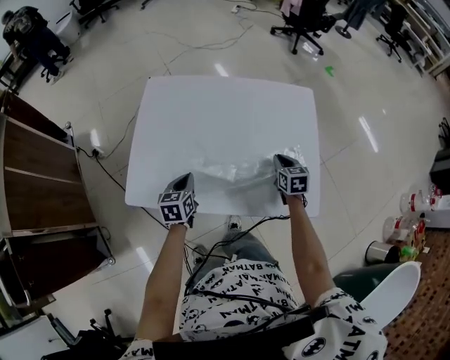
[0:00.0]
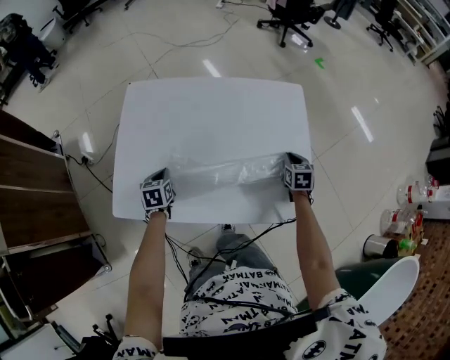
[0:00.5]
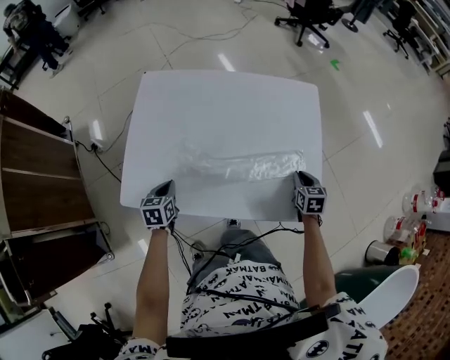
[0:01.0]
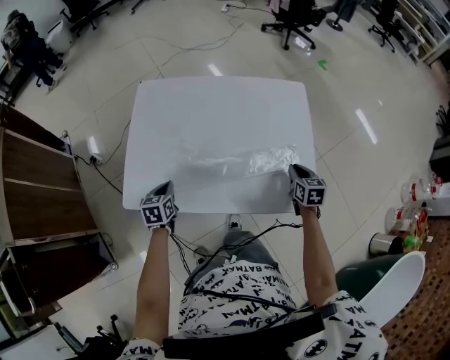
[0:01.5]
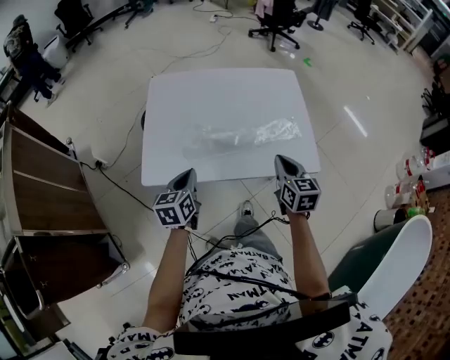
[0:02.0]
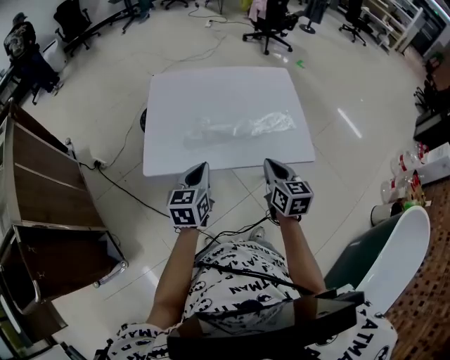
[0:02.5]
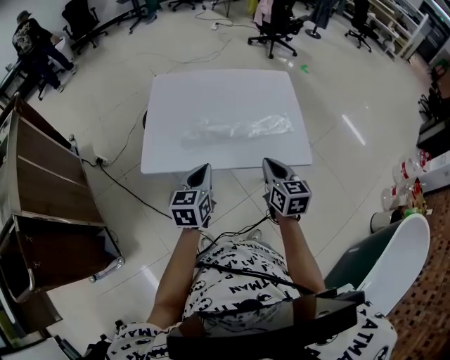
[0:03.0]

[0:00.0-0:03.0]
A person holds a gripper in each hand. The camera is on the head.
0:00.0 to 0:01.5: The left gripper shifts roughly 5 cm to the left, and moves roughly 5 cm forward and comes back. Meanwhile the right gripper shifts some 10 cm to the right and backward.
0:01.5 to 0:03.0: The right gripper moves backward, upward and to the left, roughly 35 cm, and swivels approximately 20 degrees, while the left gripper is displaced upward, backward and to the right by about 30 cm, and changes its angle by roughly 30 degrees.

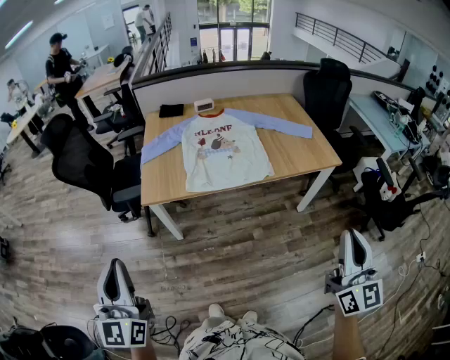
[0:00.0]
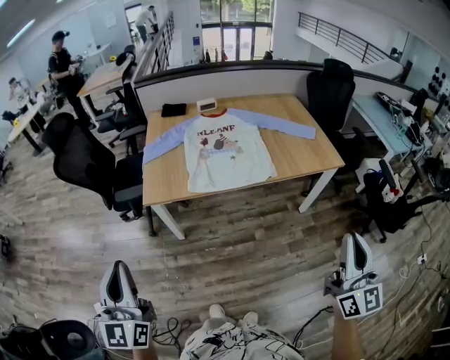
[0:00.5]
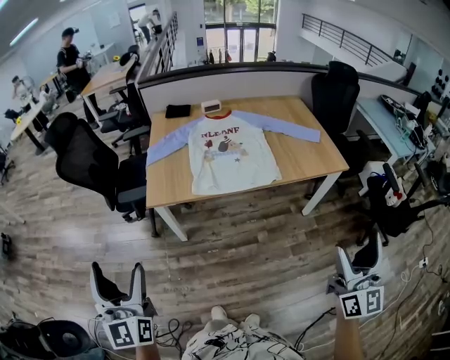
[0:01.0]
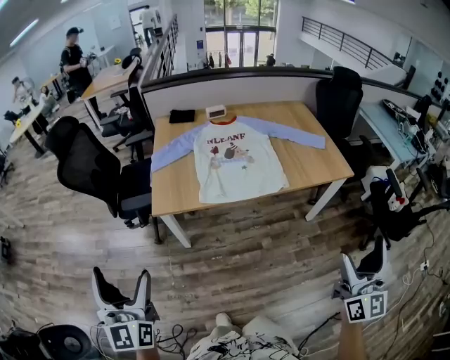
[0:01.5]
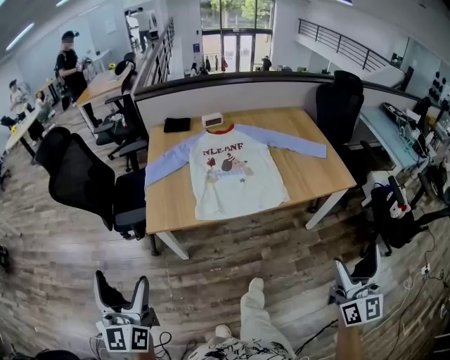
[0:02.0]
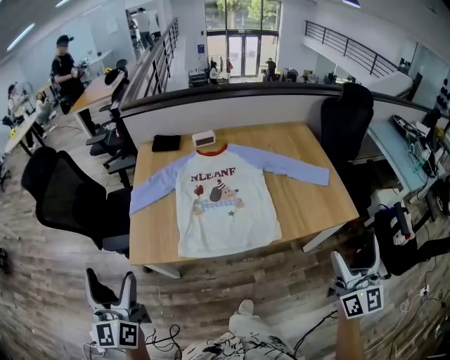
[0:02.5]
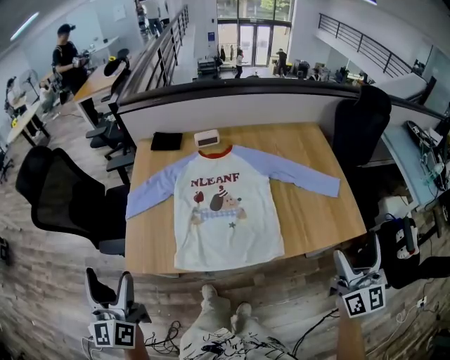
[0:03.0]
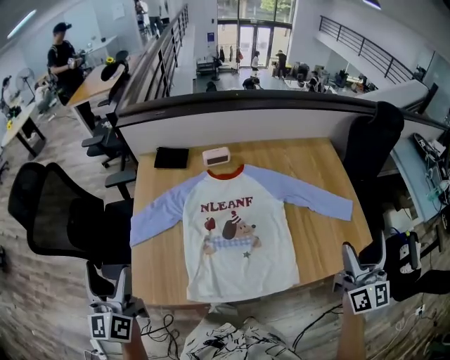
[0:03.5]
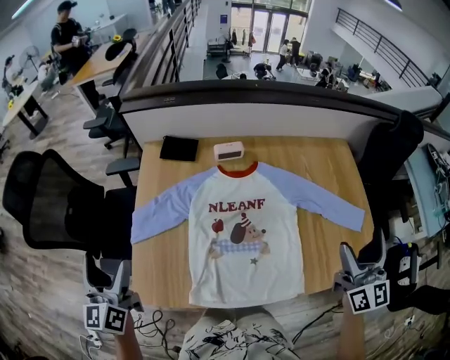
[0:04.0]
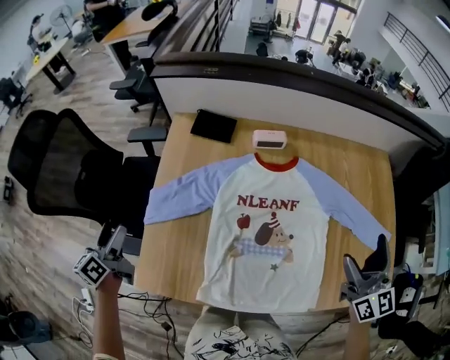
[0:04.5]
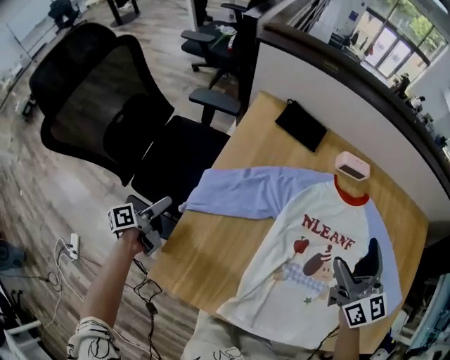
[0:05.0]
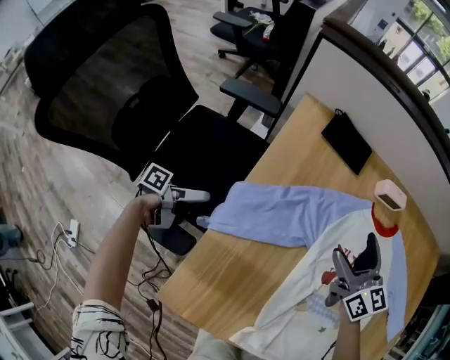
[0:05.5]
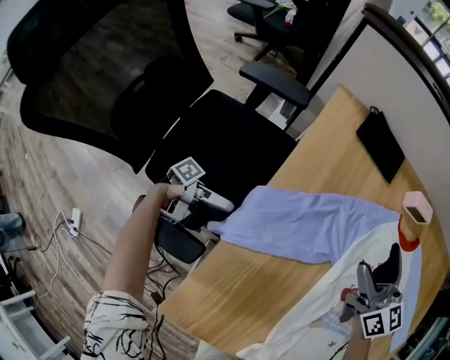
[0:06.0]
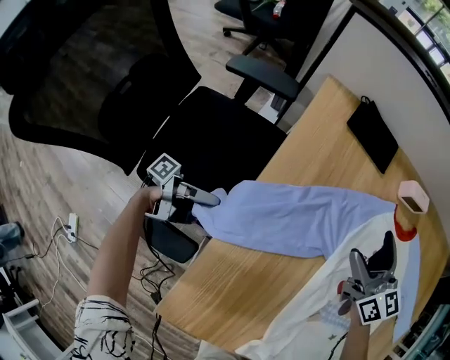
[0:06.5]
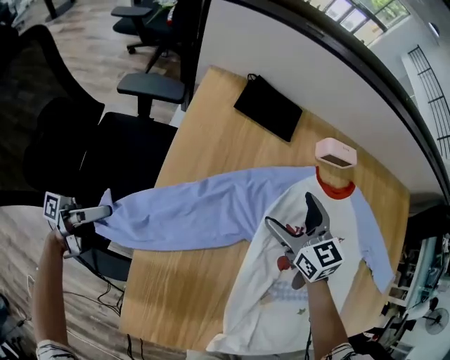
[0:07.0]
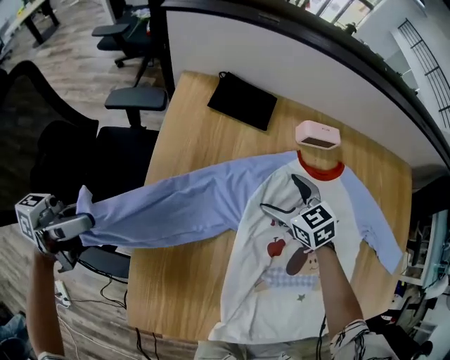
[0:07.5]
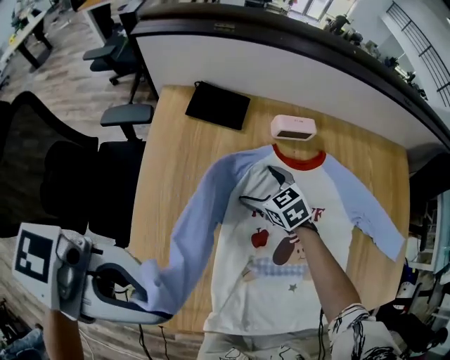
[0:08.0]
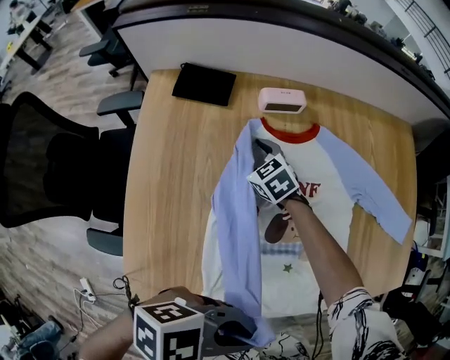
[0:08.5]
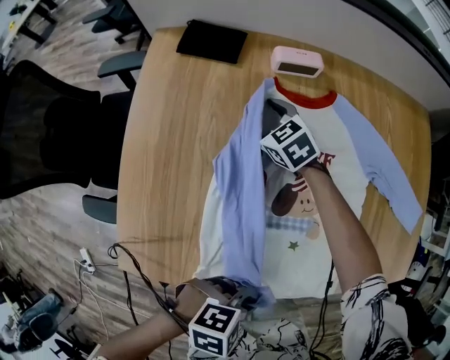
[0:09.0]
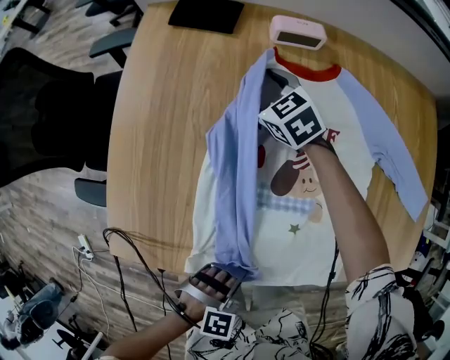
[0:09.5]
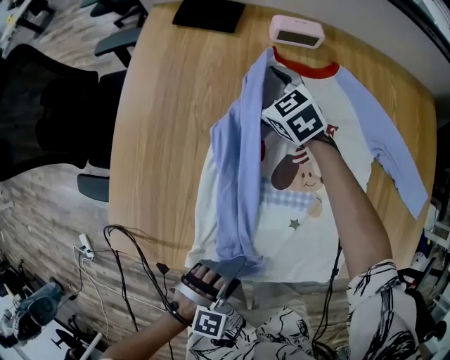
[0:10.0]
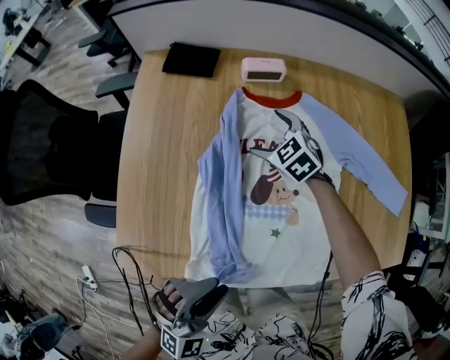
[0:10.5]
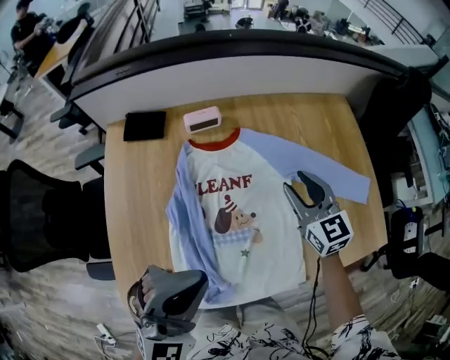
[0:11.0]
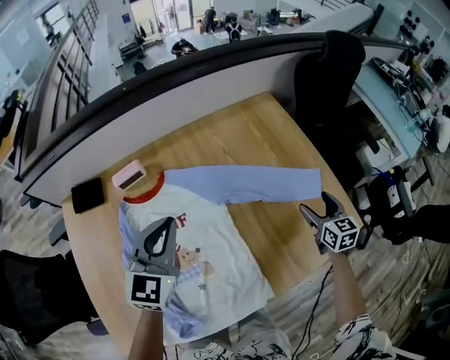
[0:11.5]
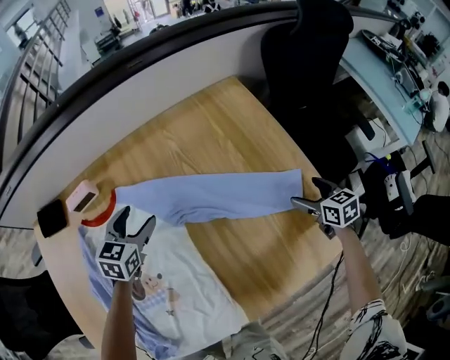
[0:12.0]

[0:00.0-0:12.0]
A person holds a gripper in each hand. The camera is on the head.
0:00.0 to 0:02.0: The right gripper travels forward by some 10 cm, and opens its fingers; the left gripper is displaced forward and to the left by approximately 15 cm, and opens.
0:02.0 to 0:04.0: The two grippers travel together, forward, about 50 cm.
0:04.0 to 0:06.0: The right gripper heads to the left, downward and forward, covering roughly 60 cm, and turns by roughly 50 degrees, while the left gripper goes some 50 cm downward, and rotates about 120 degrees.
0:06.0 to 0:08.0: The left gripper is displaced upward by about 50 cm, rolls clockwise, seen from behind, by some 80 degrees, and closes its fingers, while the right gripper shifts some 10 cm downward, and tilts its fingers approximately 30 degrees downward.
0:08.0 to 0:10.0: The left gripper moves downward, some 35 cm, angles its fingers downward, by some 60 degrees, and opens.
0:10.0 to 0:12.0: The left gripper reaches about 35 cm upward, then returns, turns by some 40 degrees, and closes and opens again. The right gripper reaches roughly 25 cm upward, then returns, twists some 50 degrees clockwise, seen from behind, and closes, then reopens.

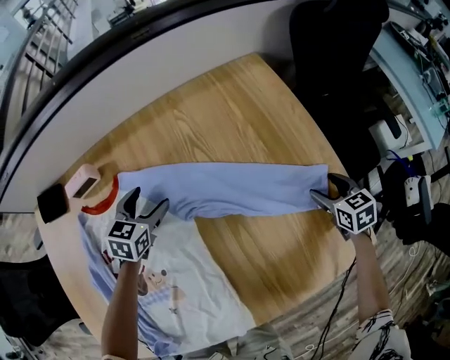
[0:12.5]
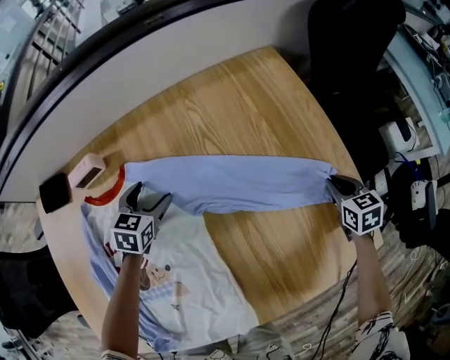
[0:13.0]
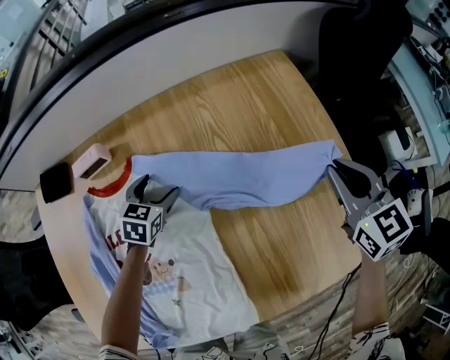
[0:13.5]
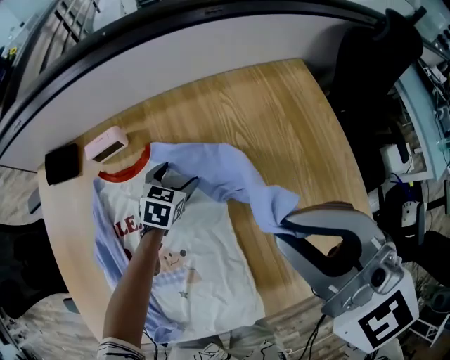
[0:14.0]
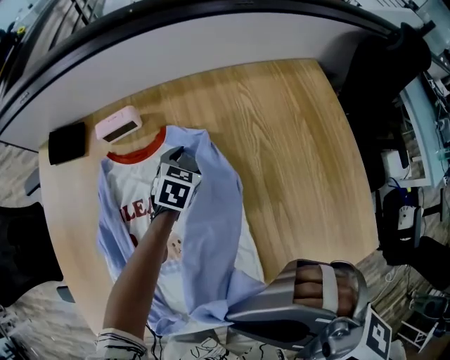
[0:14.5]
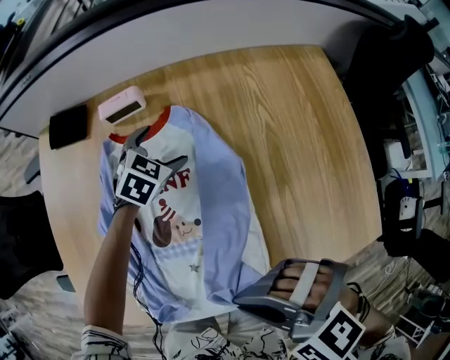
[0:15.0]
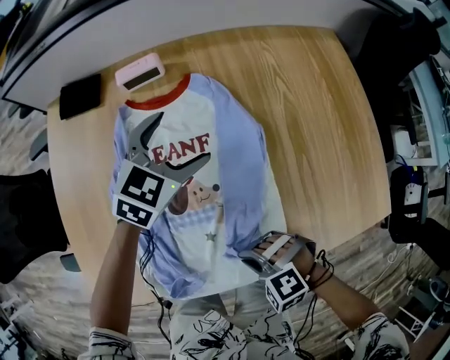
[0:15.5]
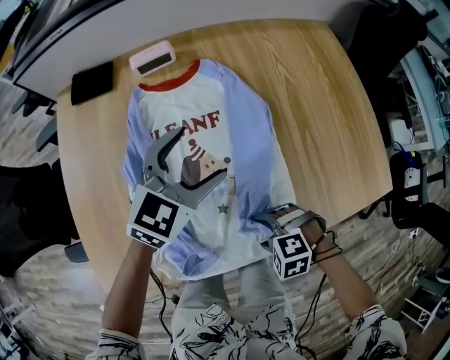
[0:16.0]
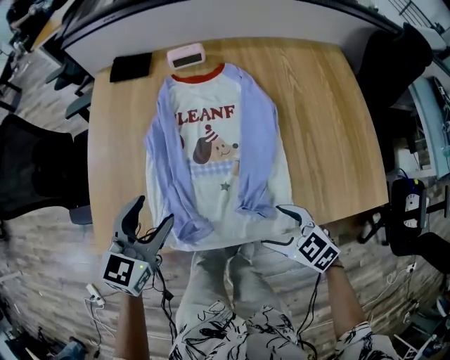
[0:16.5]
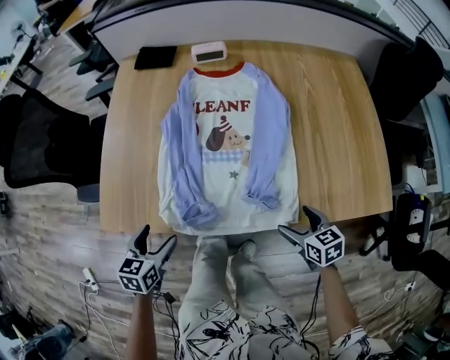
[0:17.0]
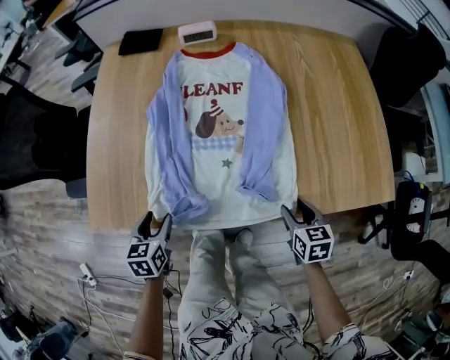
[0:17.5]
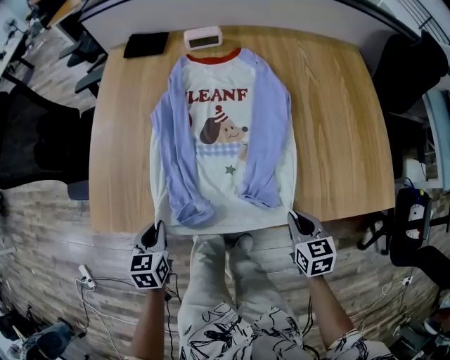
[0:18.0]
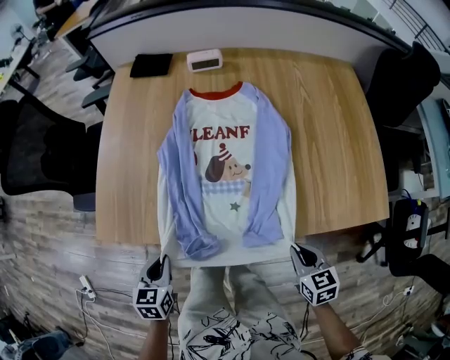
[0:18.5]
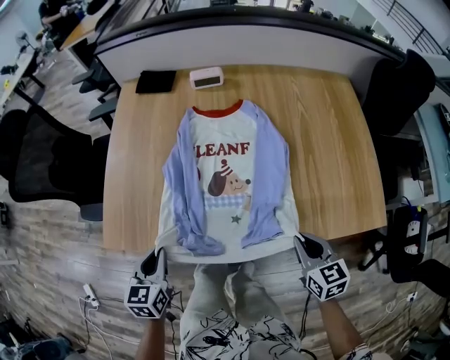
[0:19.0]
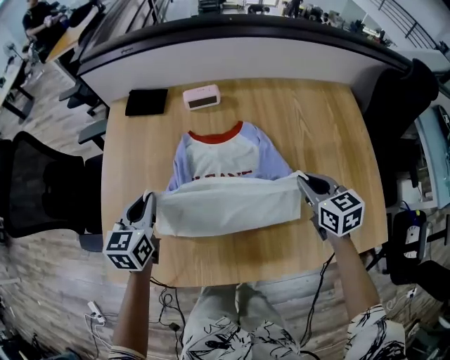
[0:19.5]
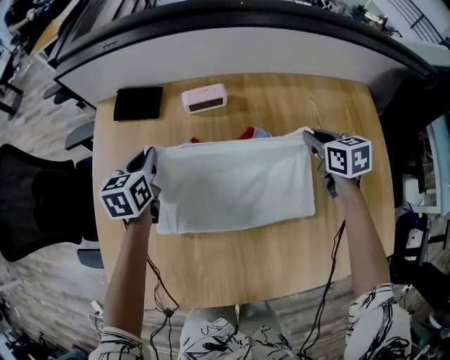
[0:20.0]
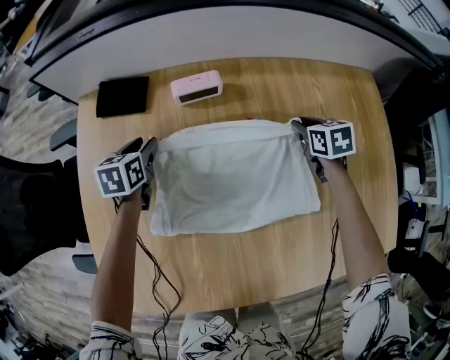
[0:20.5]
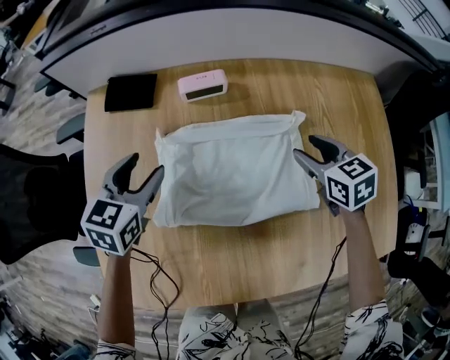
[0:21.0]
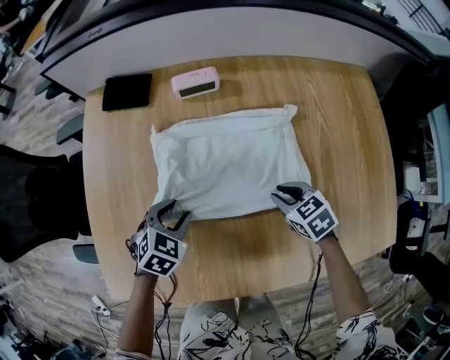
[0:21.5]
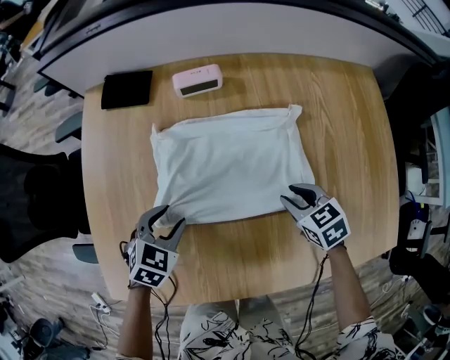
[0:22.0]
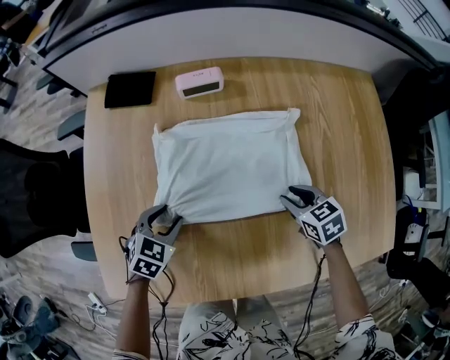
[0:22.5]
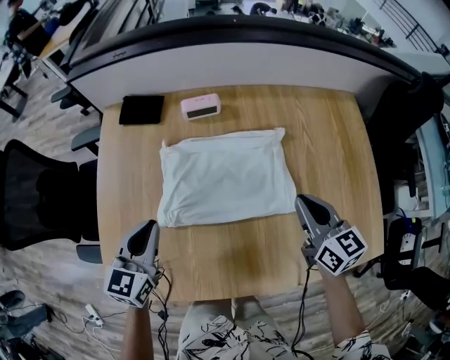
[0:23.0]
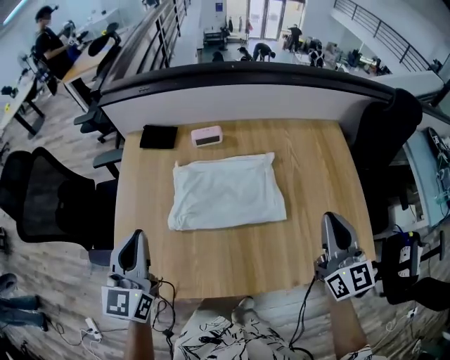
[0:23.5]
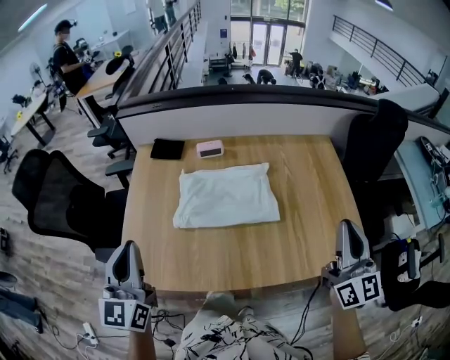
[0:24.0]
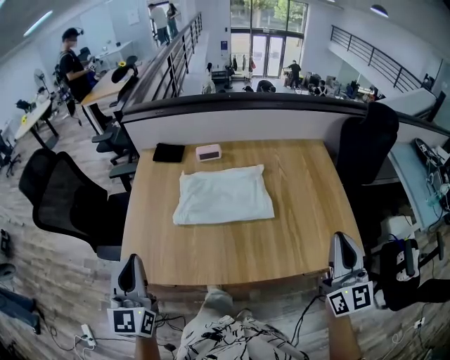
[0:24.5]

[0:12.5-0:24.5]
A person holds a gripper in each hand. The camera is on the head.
0:12.5 to 0:14.5: The right gripper moves roughly 60 cm, rotates about 80 degrees, and closes.
0:14.5 to 0:16.5: The right gripper moves downward, about 25 cm, swivels some 40 degrees, and opens. Meanwhile the left gripper ends up roughly 50 cm from where it was, and changes its angle by about 20 degrees.
0:16.5 to 0:18.5: The left gripper moves backward, downward and to the left, approximately 20 cm, turns by about 30 degrees, and closes its fingers. The right gripper shifts approximately 10 cm to the right and backward, changes its angle by some 30 degrees, and closes up.
0:18.5 to 0:20.5: The two grippers travel together, forward, approximately 60 cm.
0:20.5 to 0:22.5: The grippers both shift backward by roughly 25 cm. The left gripper turns by about 40 degrees.
0:22.5 to 0:24.5: Both grippers move upward and backward, some 50 cm. The left gripper angles its fingers upward, by approximately 50 degrees, and closes. Meanwhile the right gripper angles its fingers upward, by about 60 degrees.
